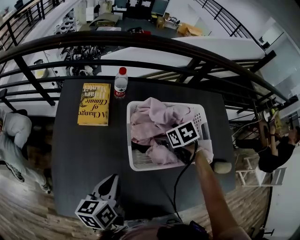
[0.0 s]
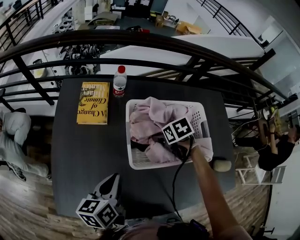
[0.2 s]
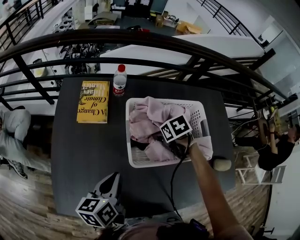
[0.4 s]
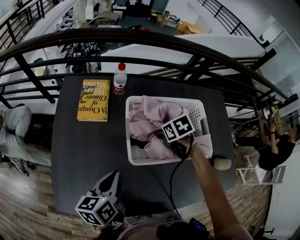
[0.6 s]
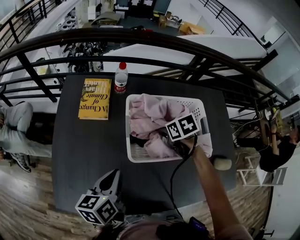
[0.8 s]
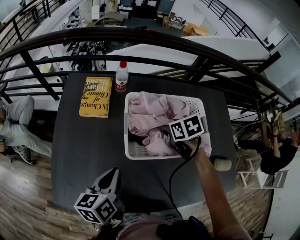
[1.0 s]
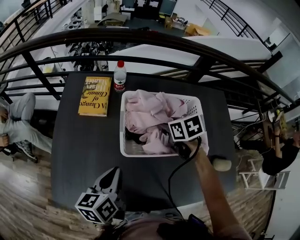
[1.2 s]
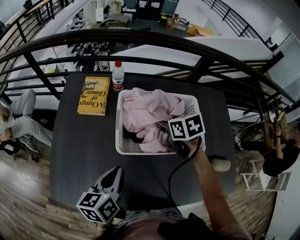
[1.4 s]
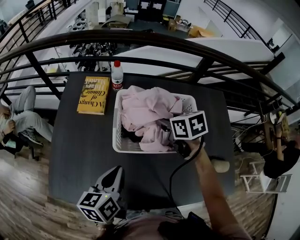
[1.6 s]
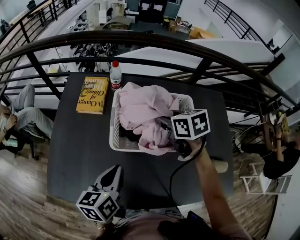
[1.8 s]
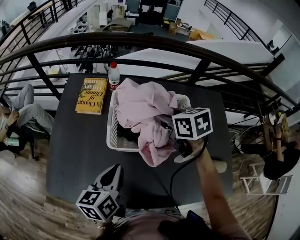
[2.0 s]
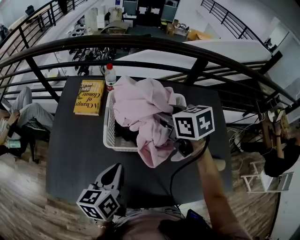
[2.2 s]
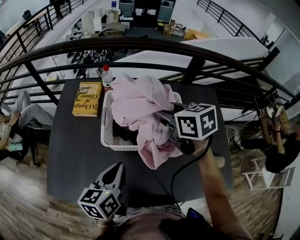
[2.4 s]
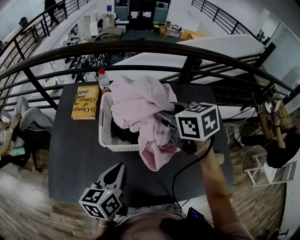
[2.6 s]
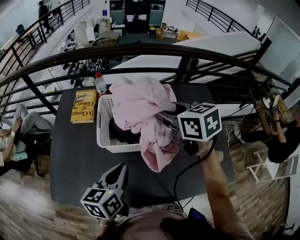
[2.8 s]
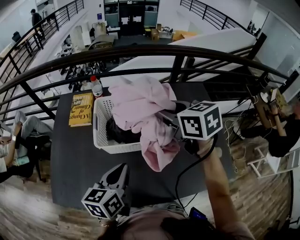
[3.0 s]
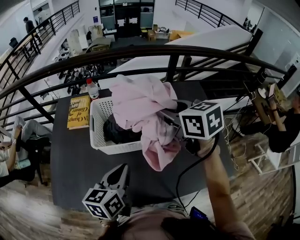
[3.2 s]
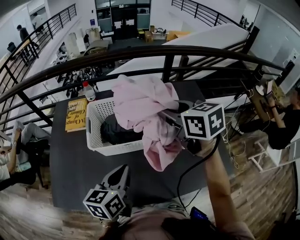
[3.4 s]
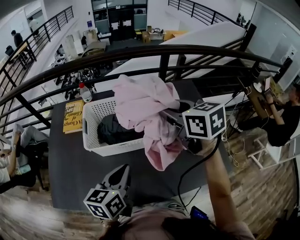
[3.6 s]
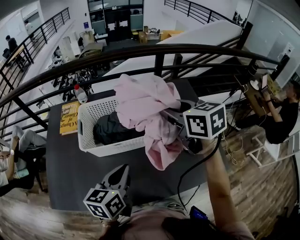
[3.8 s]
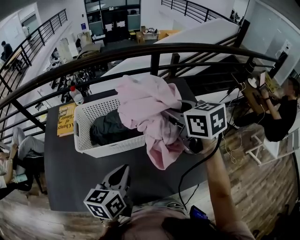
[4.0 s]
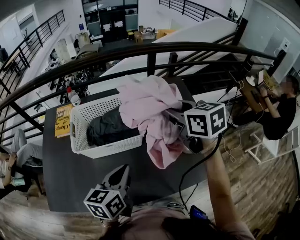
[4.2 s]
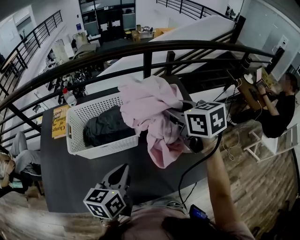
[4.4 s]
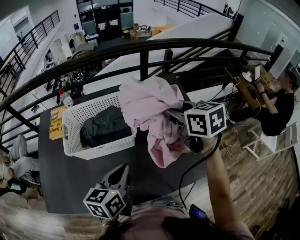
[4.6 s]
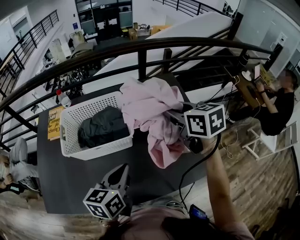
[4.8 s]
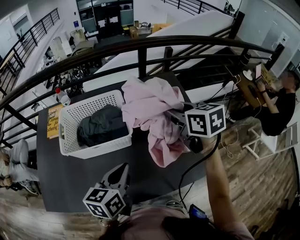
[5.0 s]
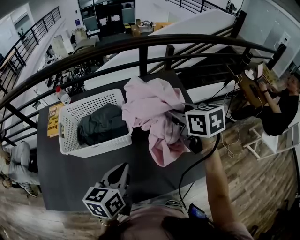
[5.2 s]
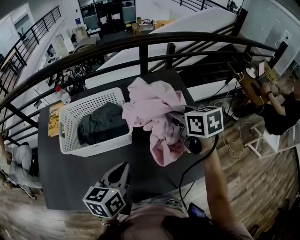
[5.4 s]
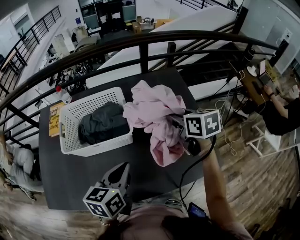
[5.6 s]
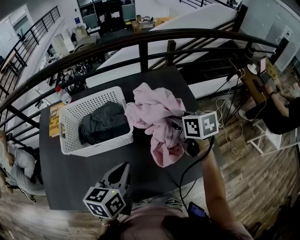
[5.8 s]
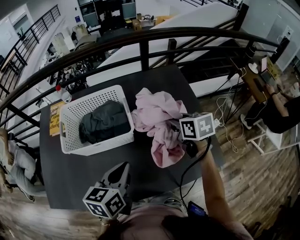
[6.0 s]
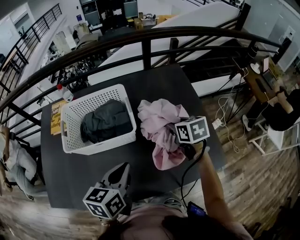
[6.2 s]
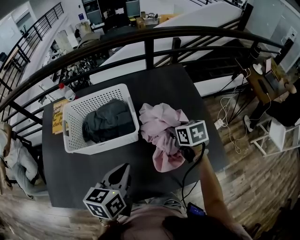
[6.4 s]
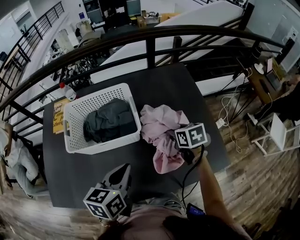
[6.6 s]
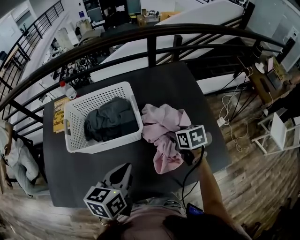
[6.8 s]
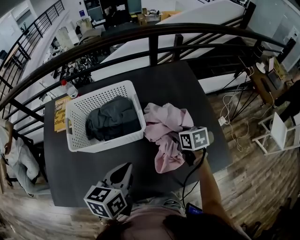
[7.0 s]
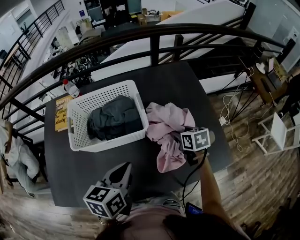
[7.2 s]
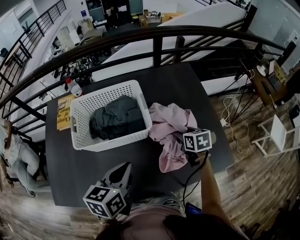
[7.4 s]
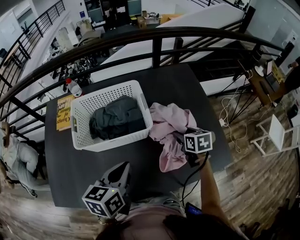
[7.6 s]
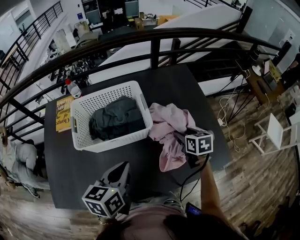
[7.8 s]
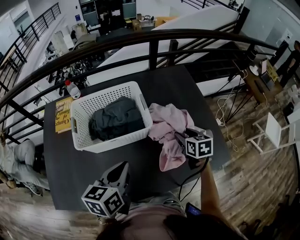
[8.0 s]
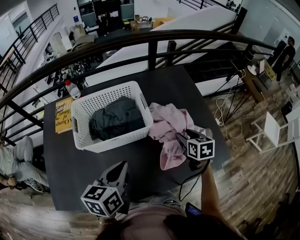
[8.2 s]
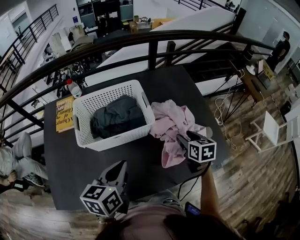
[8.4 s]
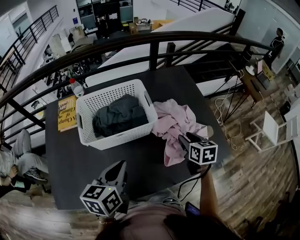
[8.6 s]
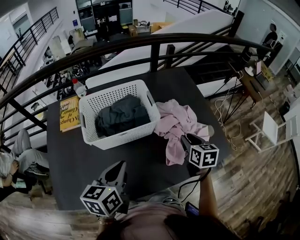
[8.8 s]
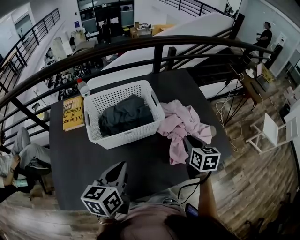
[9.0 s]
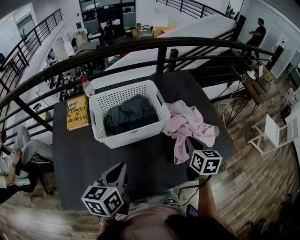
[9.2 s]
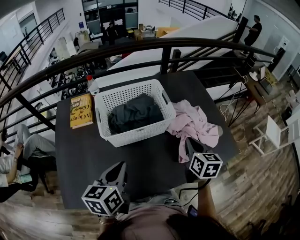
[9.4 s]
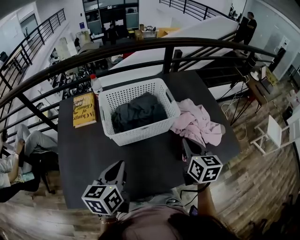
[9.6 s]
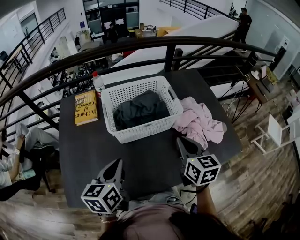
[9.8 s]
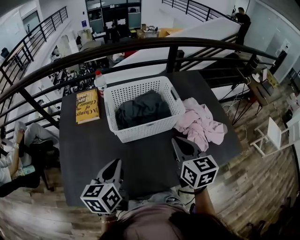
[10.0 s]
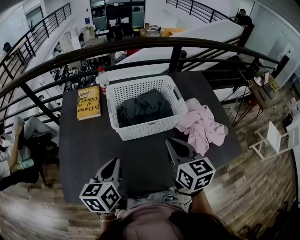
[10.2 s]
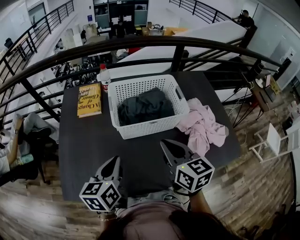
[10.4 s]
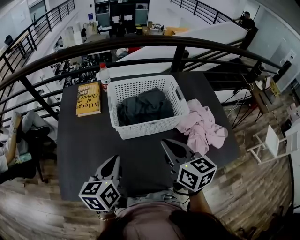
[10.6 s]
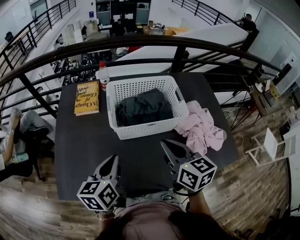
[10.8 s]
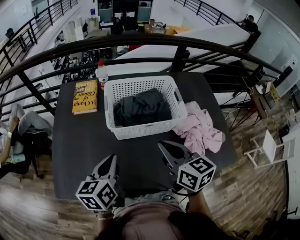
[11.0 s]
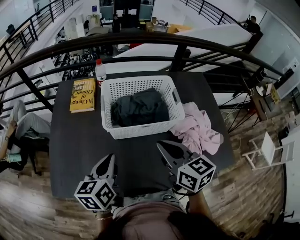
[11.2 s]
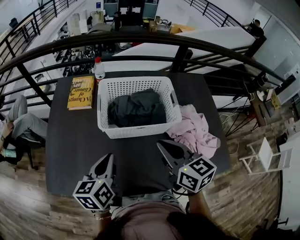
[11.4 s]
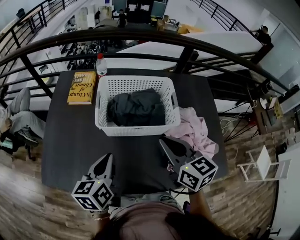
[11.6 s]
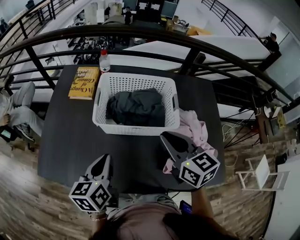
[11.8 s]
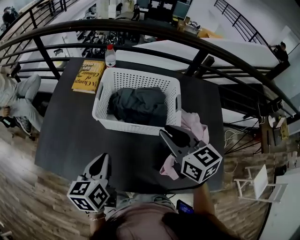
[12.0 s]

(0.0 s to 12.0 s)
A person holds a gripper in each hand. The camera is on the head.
0.0 s - 1.6 s: The left gripper goes about 5 cm to the right; the right gripper travels upward by some 10 cm, turns by approximately 20 degrees, and closes its fingers.
1.6 s - 3.0 s: The right gripper is displaced upward, backward and to the right by some 20 cm. Meanwhile the left gripper travels to the right by approximately 10 cm.
3.0 s - 4.4 s: The grippers both shift to the right by roughly 15 cm.
4.4 s - 6.0 s: The right gripper travels downward by approximately 15 cm.
6.0 s - 7.6 s: The right gripper moves downward, approximately 10 cm, while the left gripper is displaced to the left by roughly 5 cm.
7.6 s - 9.0 s: The left gripper goes roughly 10 cm to the left and backward. Meanwhile the right gripper moves backward and upward, roughly 15 cm, and closes.
9.0 s - 10.4 s: The left gripper moves to the left, approximately 15 cm. Meanwhile the right gripper shifts roughly 25 cm to the left, and turns by some 30 degrees.
10.4 s - 12.0 s: The right gripper moves to the right and forward, approximately 15 cm, and rotates roughly 30 degrees; the left gripper shifts some 10 cm to the right, and turns by some 20 degrees.

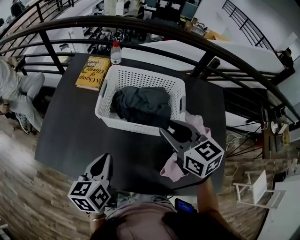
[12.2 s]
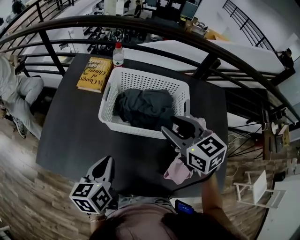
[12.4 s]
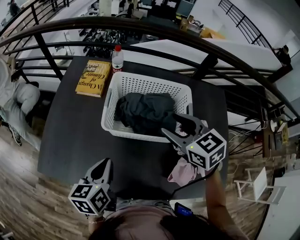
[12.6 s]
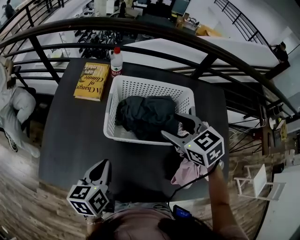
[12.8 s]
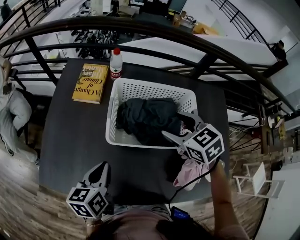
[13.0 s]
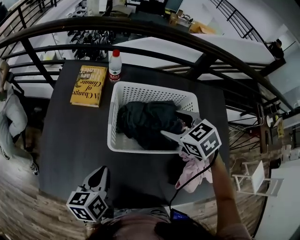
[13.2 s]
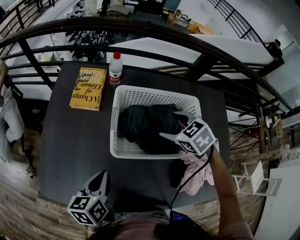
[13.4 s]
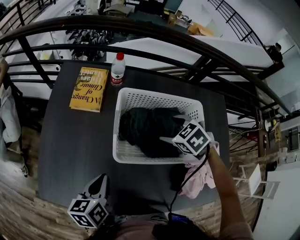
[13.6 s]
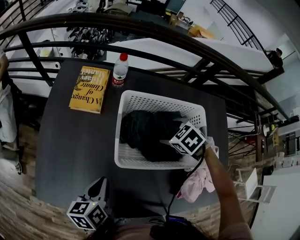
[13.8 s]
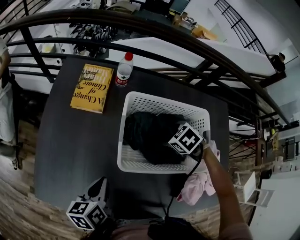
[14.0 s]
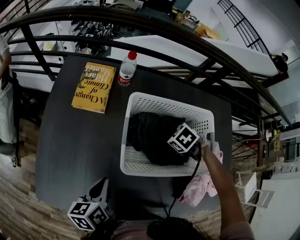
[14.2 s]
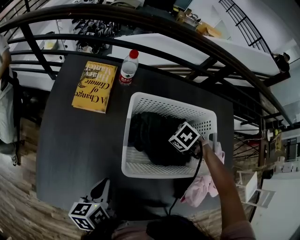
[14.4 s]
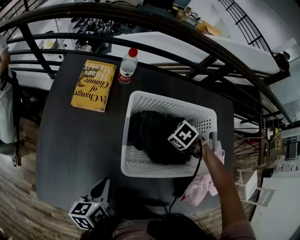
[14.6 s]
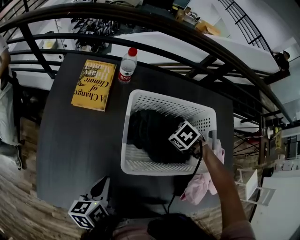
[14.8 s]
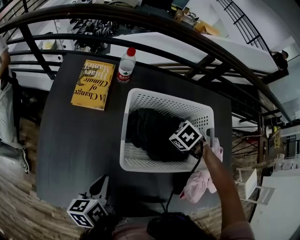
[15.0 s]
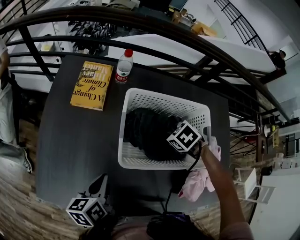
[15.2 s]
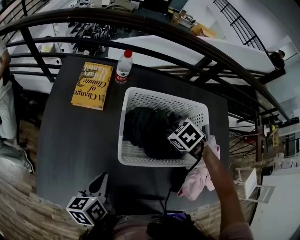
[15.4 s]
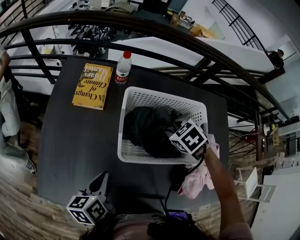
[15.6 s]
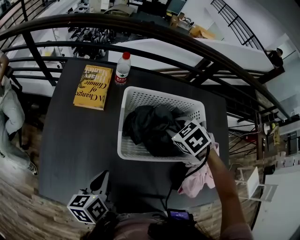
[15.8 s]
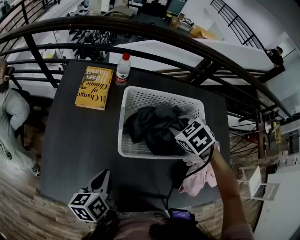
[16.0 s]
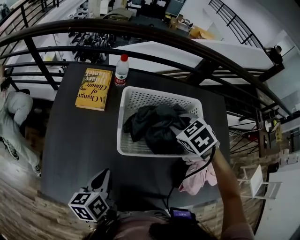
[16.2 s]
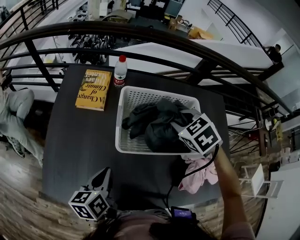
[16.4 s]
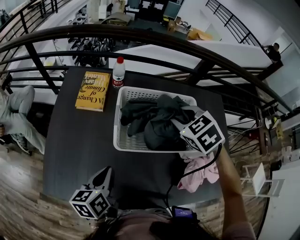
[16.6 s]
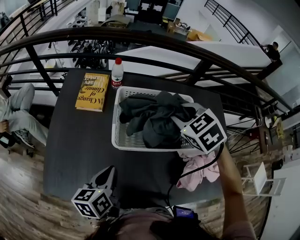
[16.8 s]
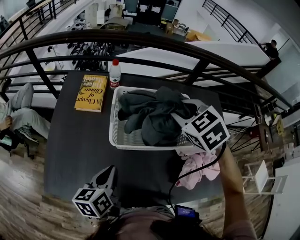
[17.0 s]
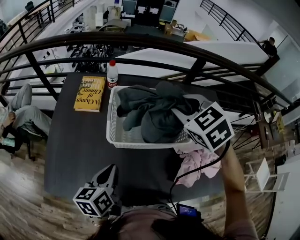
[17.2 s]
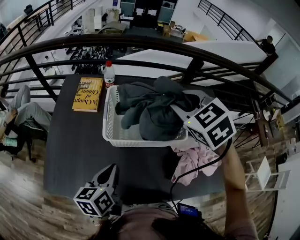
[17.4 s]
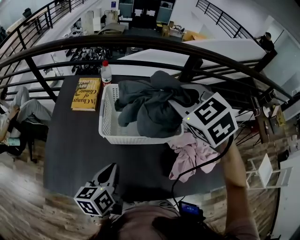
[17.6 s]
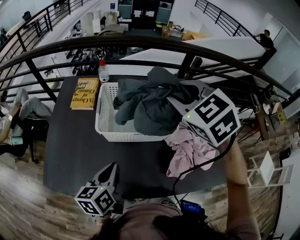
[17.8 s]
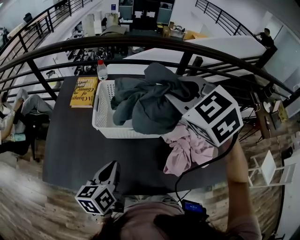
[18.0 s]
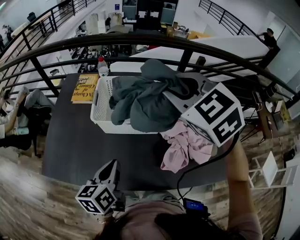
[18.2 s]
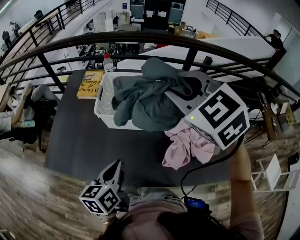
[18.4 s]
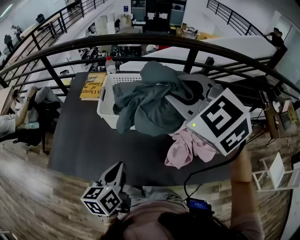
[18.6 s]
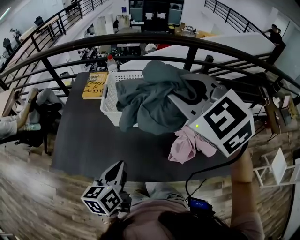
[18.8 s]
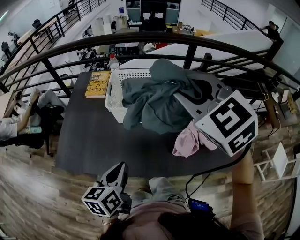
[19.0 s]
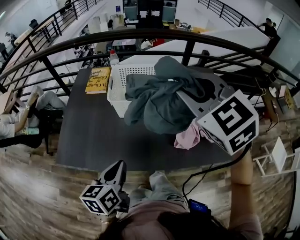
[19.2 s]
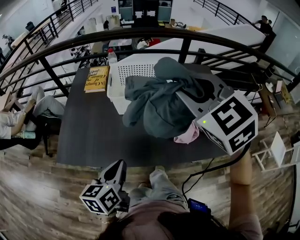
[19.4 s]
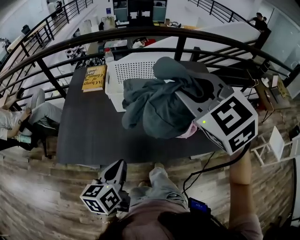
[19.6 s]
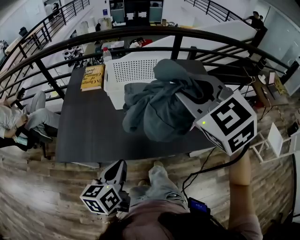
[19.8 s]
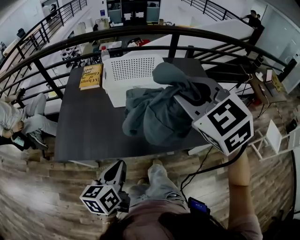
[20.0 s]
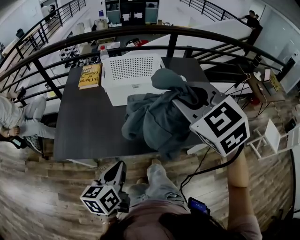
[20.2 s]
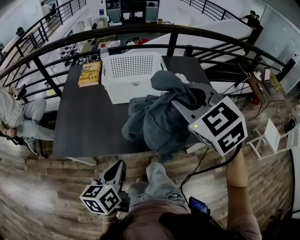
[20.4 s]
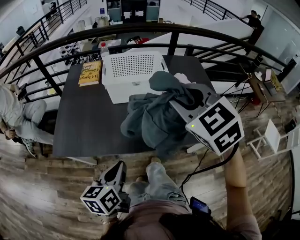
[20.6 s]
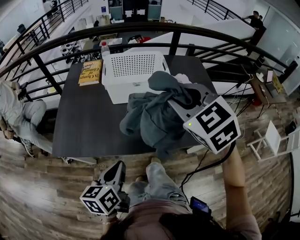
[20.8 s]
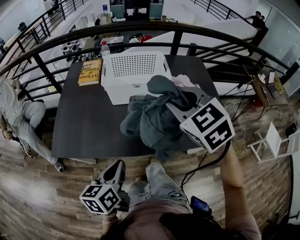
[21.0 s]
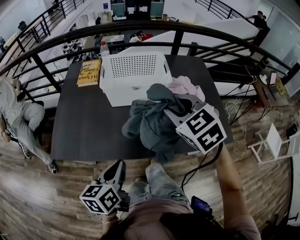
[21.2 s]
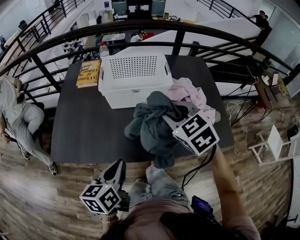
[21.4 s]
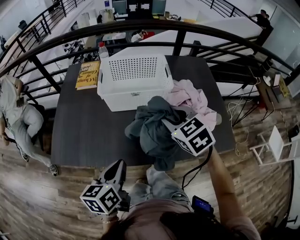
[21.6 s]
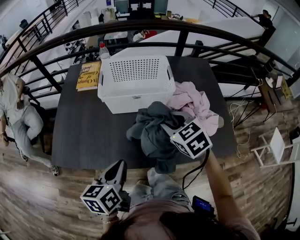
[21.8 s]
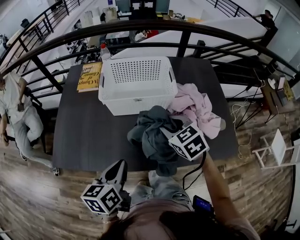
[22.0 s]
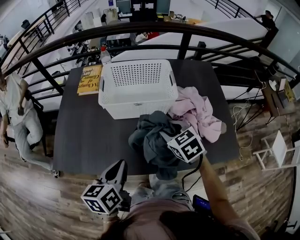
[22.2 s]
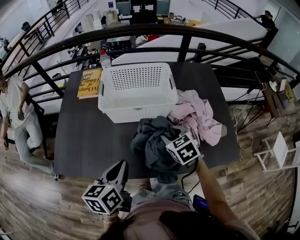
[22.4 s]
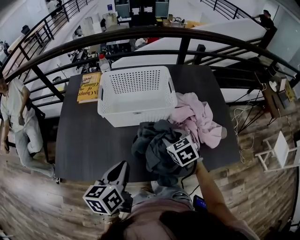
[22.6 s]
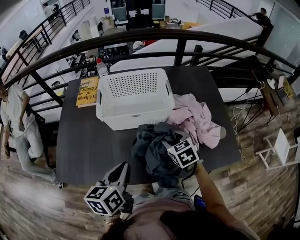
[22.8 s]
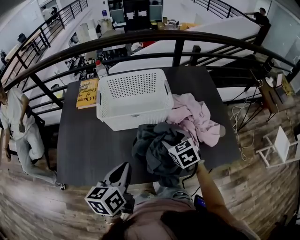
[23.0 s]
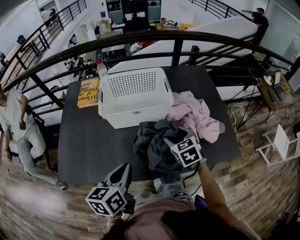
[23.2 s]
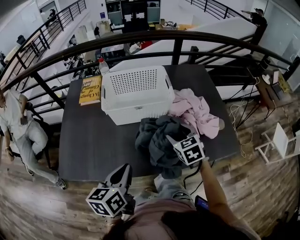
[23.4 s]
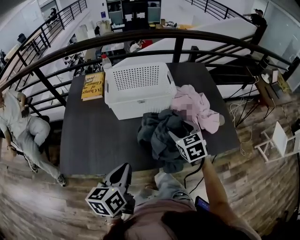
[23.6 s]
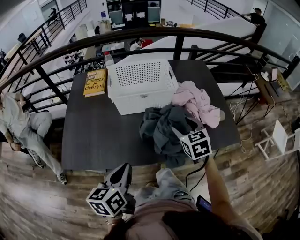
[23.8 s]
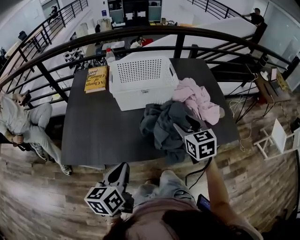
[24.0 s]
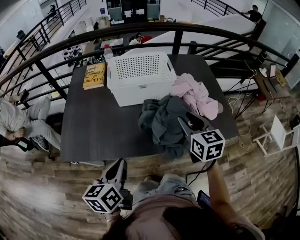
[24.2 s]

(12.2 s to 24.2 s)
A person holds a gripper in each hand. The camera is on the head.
12.2 s - 13.8 s: The left gripper heads forward, to the left and downward, covering about 15 cm. The right gripper goes some 25 cm downward and forward, angles its fingers downward, by about 50 degrees, and opens its fingers.
13.8 s - 15.2 s: The right gripper closes.
15.2 s - 16.6 s: The left gripper is displaced upward by approximately 5 cm. The right gripper is displaced upward by roughly 20 cm, and turns by about 30 degrees.
16.6 s - 18.2 s: The left gripper travels to the right, backward and upward by roughly 15 cm; the right gripper heads upward and backward, covering about 20 cm, and swivels roughly 20 degrees.
18.2 s - 19.8 s: Both grippers travel together backward, roughly 20 cm.
19.8 s - 21.2 s: The right gripper is displaced downward by approximately 10 cm.
21.2 s - 22.6 s: The left gripper is displaced forward by about 10 cm. Meanwhile the right gripper travels downward and forward by about 20 cm, and turns by approximately 20 degrees.
22.6 s - 24.2 s: The right gripper travels upward and backward by about 20 cm, and turns by some 30 degrees. Meanwhile the left gripper moves backward and to the left, about 15 cm.
